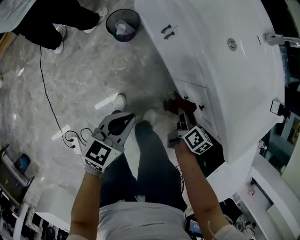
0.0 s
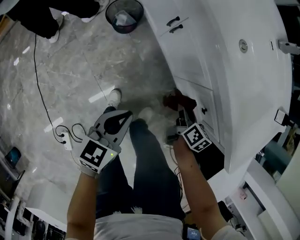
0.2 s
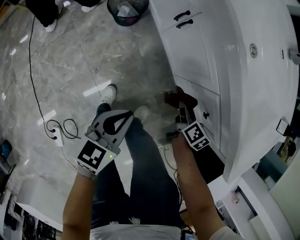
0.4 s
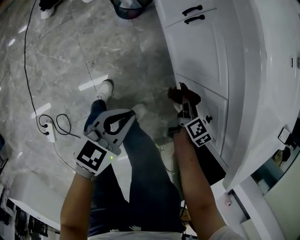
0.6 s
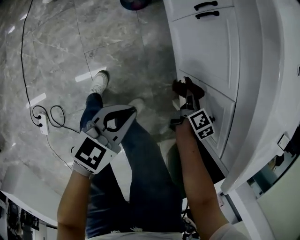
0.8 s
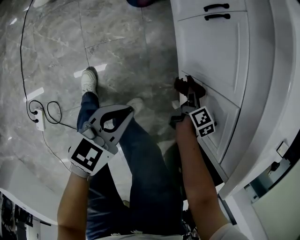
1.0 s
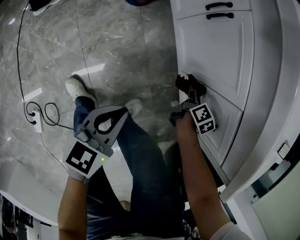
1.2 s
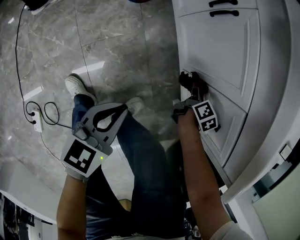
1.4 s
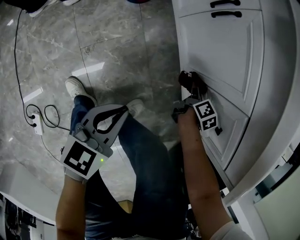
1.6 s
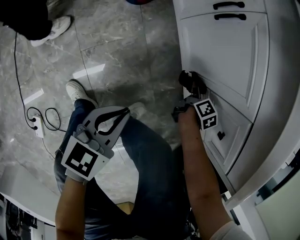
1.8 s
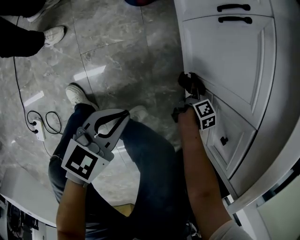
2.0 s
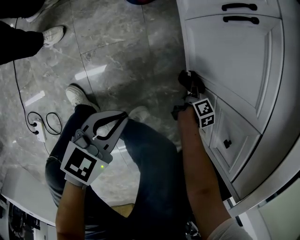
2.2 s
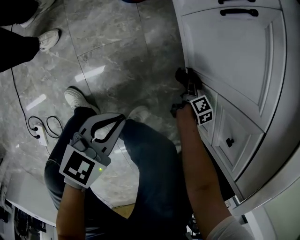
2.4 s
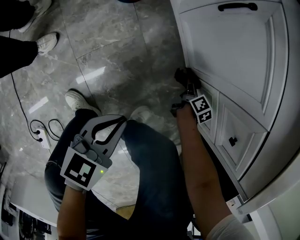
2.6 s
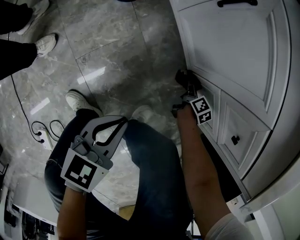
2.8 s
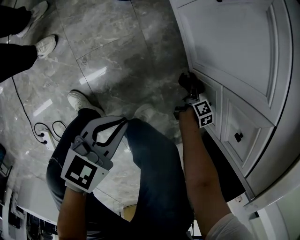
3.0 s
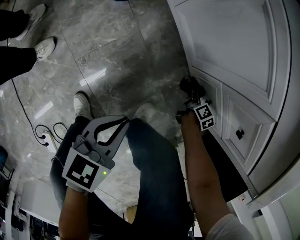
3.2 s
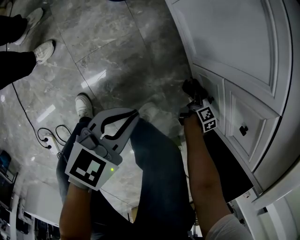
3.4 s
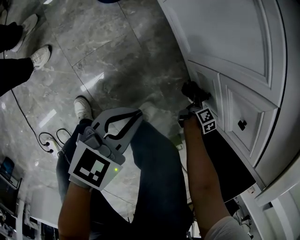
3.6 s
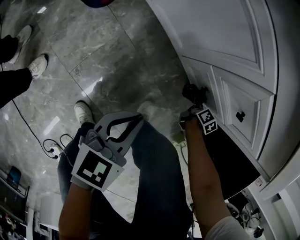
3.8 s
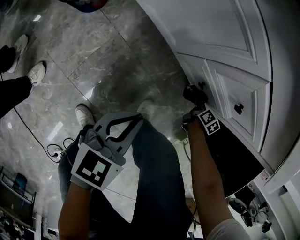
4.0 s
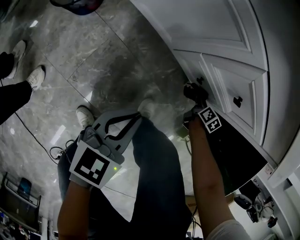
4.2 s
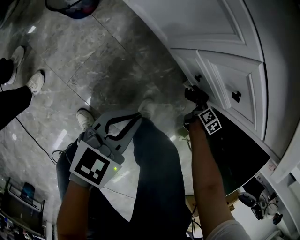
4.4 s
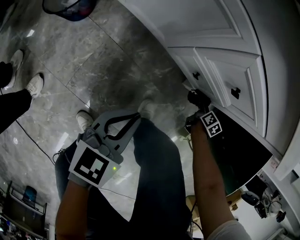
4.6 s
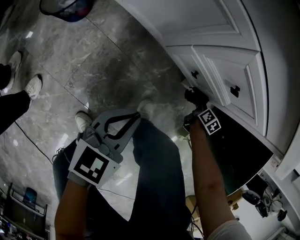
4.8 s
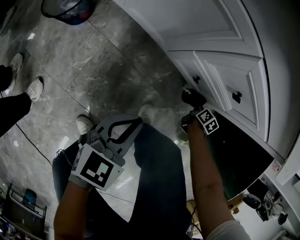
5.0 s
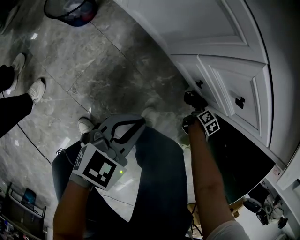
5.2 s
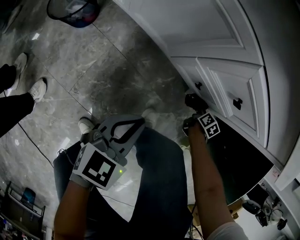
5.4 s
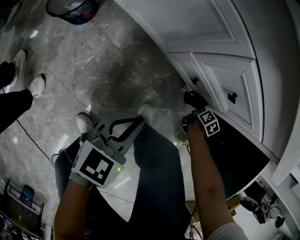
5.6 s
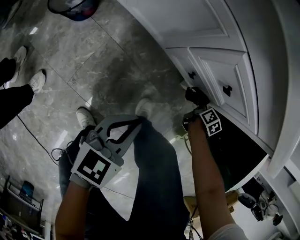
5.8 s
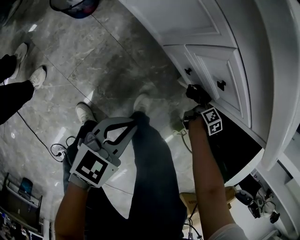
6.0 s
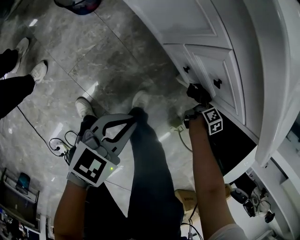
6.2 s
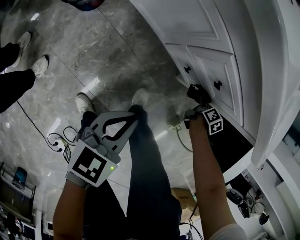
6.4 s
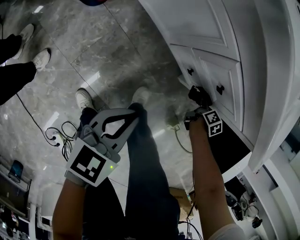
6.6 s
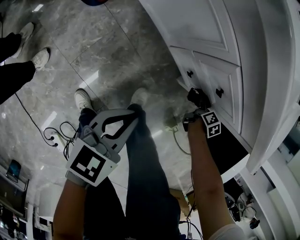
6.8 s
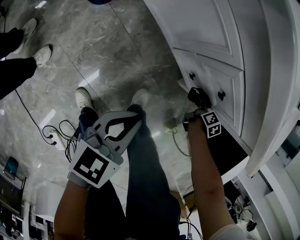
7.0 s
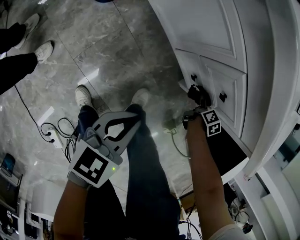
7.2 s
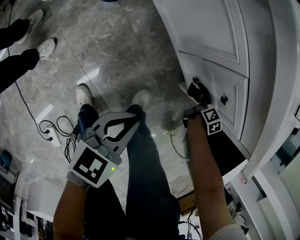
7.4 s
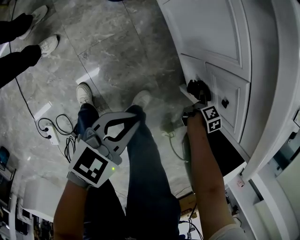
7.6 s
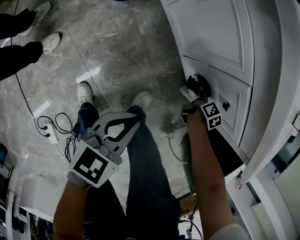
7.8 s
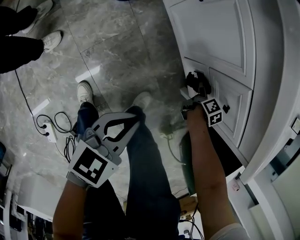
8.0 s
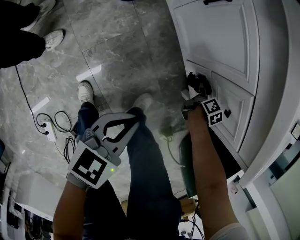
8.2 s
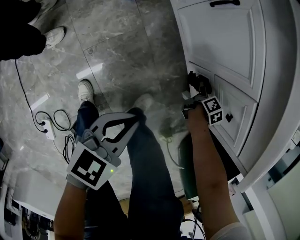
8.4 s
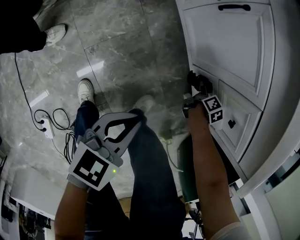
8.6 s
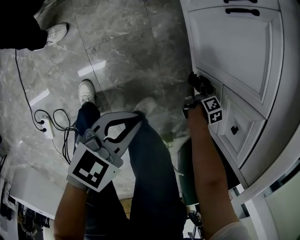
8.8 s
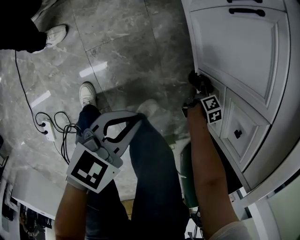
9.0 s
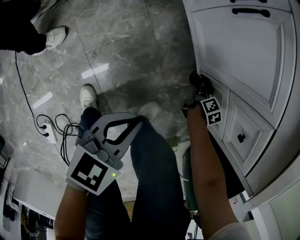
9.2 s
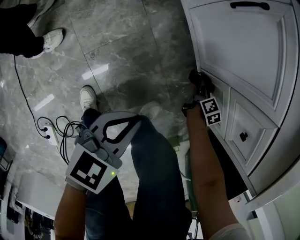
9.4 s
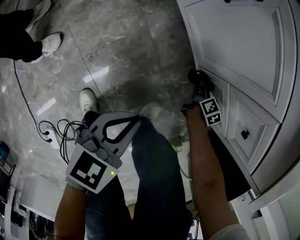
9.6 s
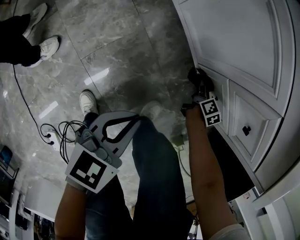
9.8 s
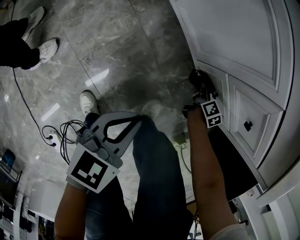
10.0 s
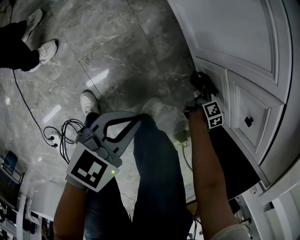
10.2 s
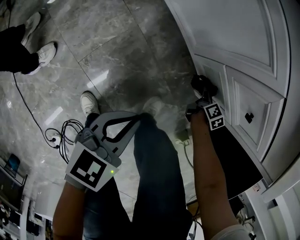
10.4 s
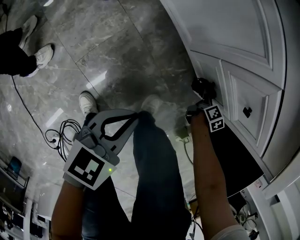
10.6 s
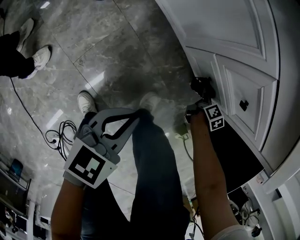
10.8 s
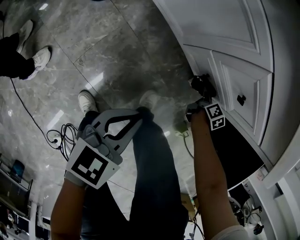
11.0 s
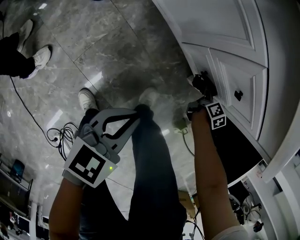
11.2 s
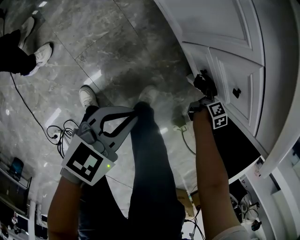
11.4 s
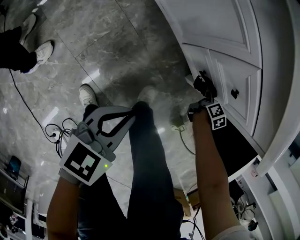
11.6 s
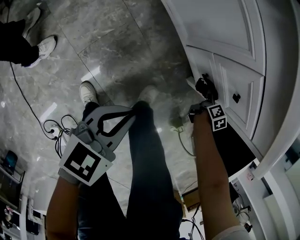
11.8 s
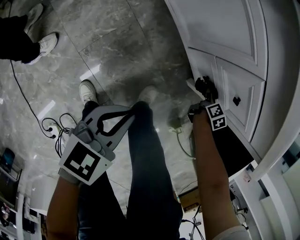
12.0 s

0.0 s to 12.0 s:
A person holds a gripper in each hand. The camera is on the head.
0.0 to 1.6 s: Both grippers travel together downward, some 25 cm.
1.6 to 3.0 s: The left gripper shifts about 5 cm downward. Meanwhile the right gripper travels downward and to the right by about 15 cm.
3.0 to 4.4 s: The right gripper goes approximately 20 cm to the right. The left gripper goes approximately 10 cm to the right and forward, and rotates roughly 20 degrees.
4.4 to 6.0 s: The right gripper goes about 10 cm upward; the left gripper moves about 5 cm.
6.0 to 7.6 s: The right gripper travels to the left by about 10 cm, while the left gripper moves to the left, about 5 cm.
7.6 to 9.0 s: The left gripper moves downward and to the left, about 10 cm, while the right gripper heads to the left and downward, covering roughly 15 cm.
9.0 to 10.4 s: The left gripper ends up some 5 cm from where it was, while the right gripper moves to the right, about 10 cm.
10.4 to 12.0 s: The left gripper is displaced upward by about 5 cm. The right gripper goes about 10 cm upward.

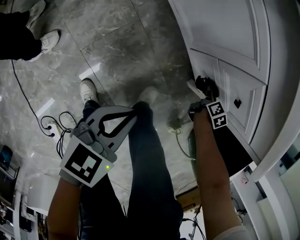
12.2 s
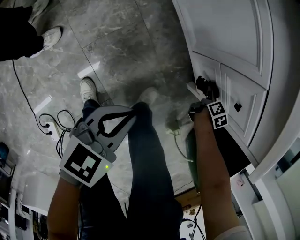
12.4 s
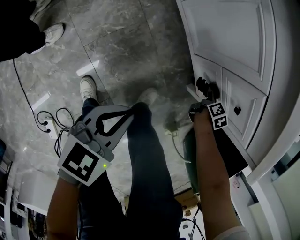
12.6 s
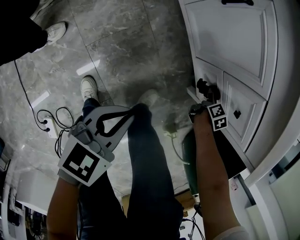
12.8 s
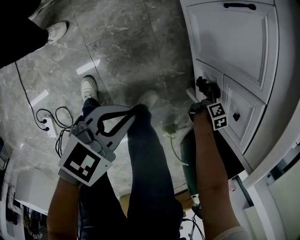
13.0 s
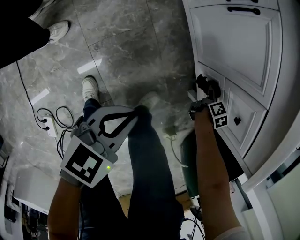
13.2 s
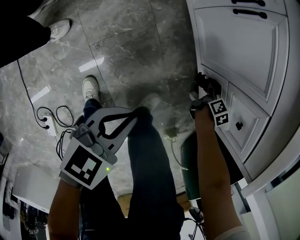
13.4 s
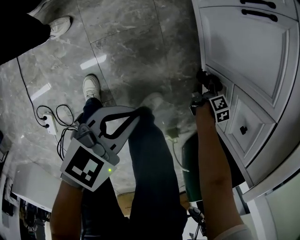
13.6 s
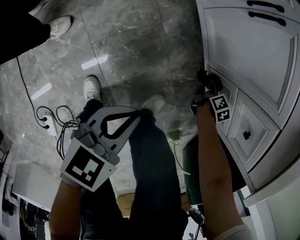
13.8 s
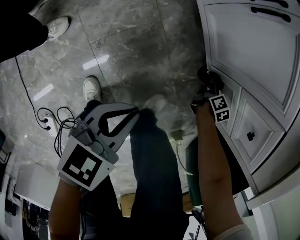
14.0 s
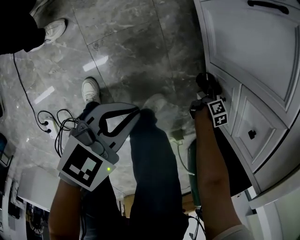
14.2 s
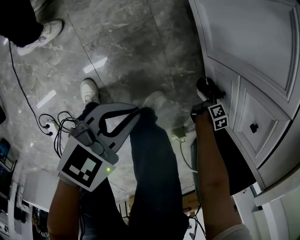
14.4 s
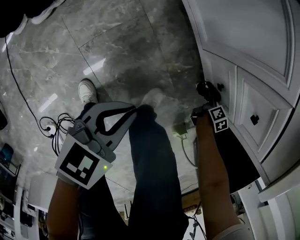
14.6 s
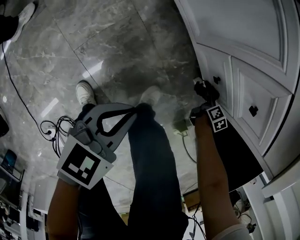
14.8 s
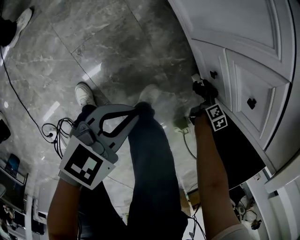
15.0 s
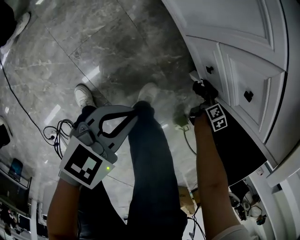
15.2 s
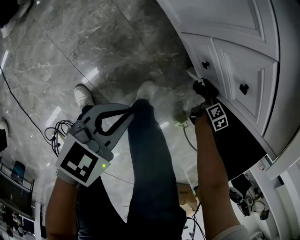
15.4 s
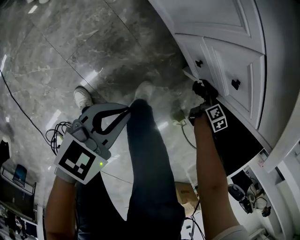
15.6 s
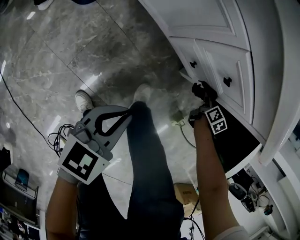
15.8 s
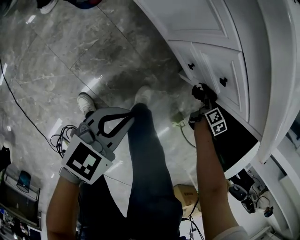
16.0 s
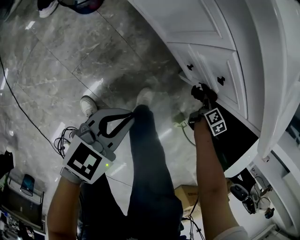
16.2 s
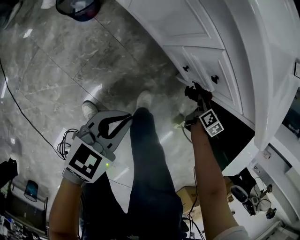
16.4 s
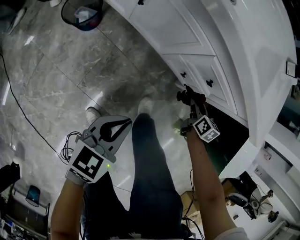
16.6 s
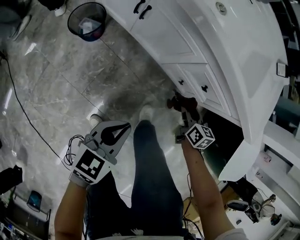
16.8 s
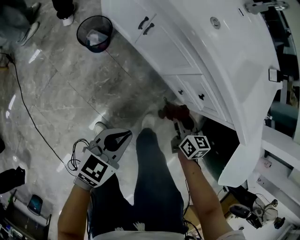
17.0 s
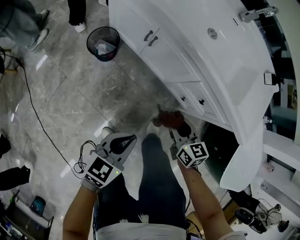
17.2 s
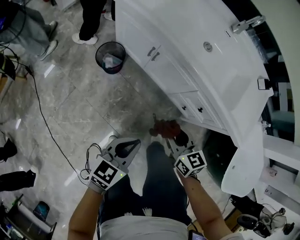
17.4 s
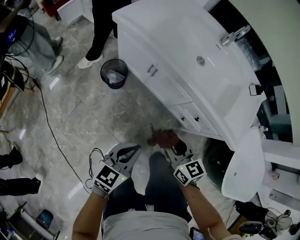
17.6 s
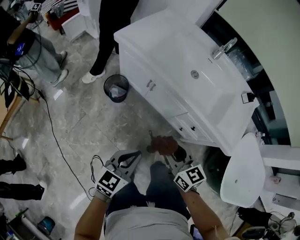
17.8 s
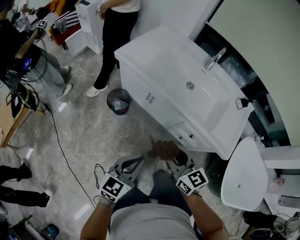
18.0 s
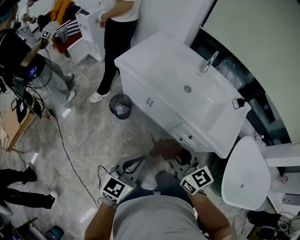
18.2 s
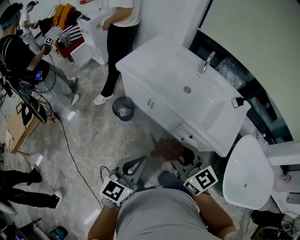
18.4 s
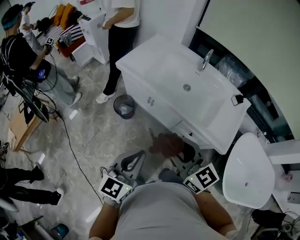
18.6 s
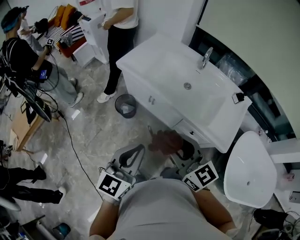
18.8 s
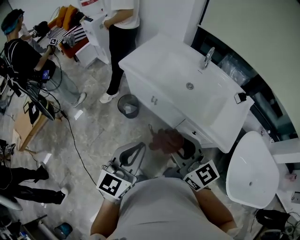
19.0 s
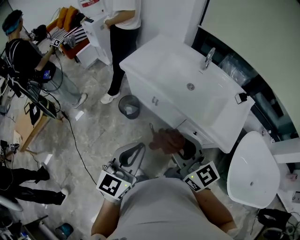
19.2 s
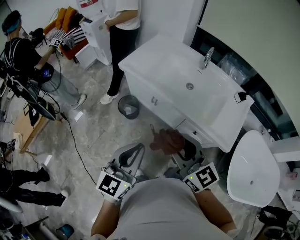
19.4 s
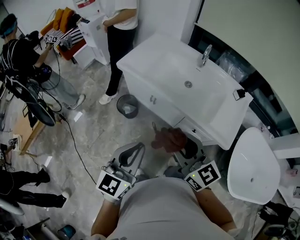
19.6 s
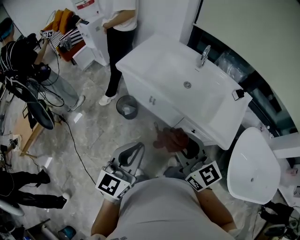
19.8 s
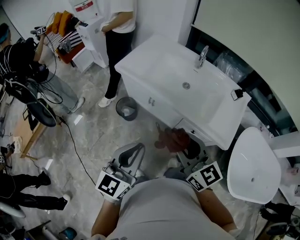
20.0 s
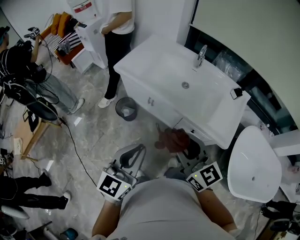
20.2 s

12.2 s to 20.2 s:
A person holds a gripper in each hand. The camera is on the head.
12.2 to 13.8 s: The right gripper heads to the left and downward, covering roughly 15 cm. The left gripper moves downward, roughly 5 cm.
13.8 to 15.4 s: The left gripper heads to the right, covering about 10 cm. Meanwhile the right gripper heads to the right, covering roughly 25 cm.
15.4 to 17.0 s: The right gripper heads upward, to the left and backward, covering approximately 40 cm, and changes its angle by about 40 degrees. Meanwhile the left gripper travels upward by about 15 cm.
17.0 to 18.6 s: The two grippers go roughly 40 cm upward. The right gripper tilts its fingers some 30 degrees upward. Meanwhile the left gripper swivels some 30 degrees.
18.6 to 20.2 s: There are only small adjustments of the grippers.

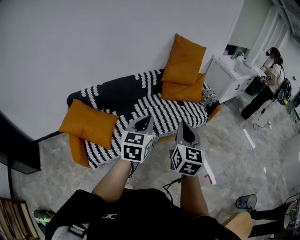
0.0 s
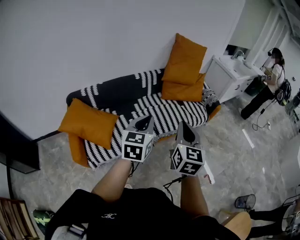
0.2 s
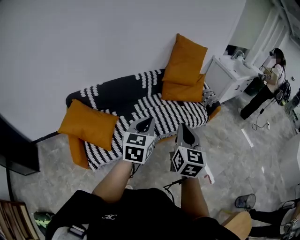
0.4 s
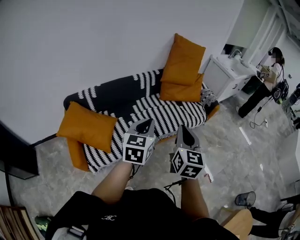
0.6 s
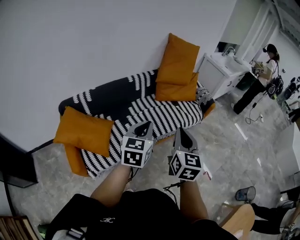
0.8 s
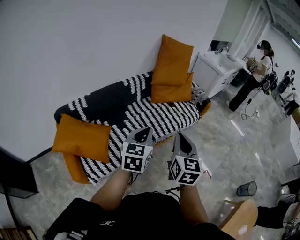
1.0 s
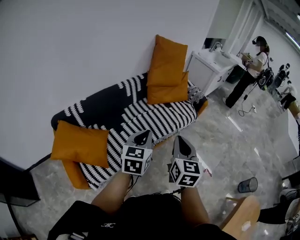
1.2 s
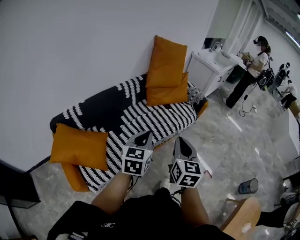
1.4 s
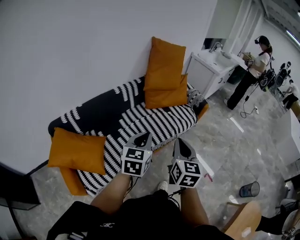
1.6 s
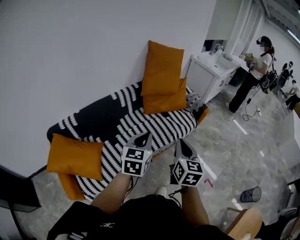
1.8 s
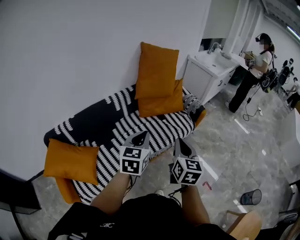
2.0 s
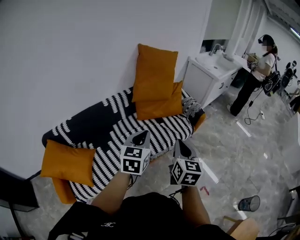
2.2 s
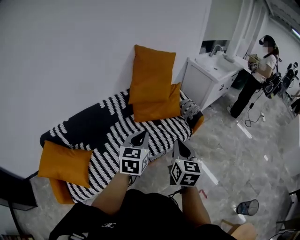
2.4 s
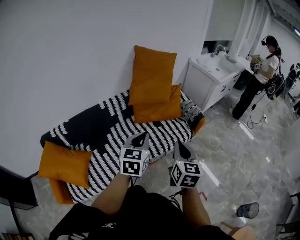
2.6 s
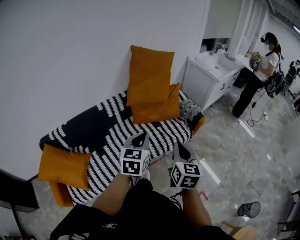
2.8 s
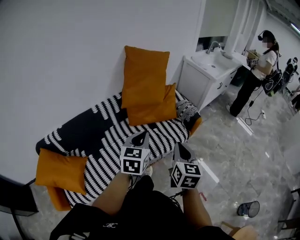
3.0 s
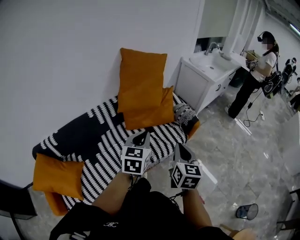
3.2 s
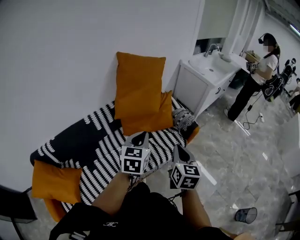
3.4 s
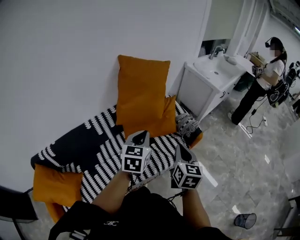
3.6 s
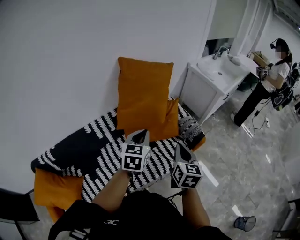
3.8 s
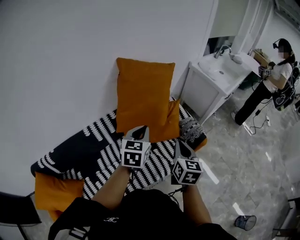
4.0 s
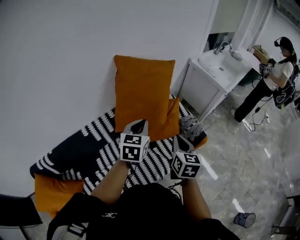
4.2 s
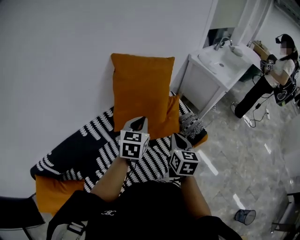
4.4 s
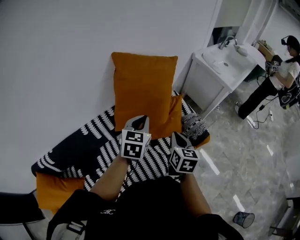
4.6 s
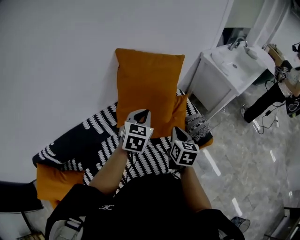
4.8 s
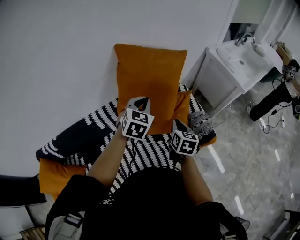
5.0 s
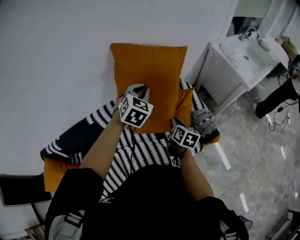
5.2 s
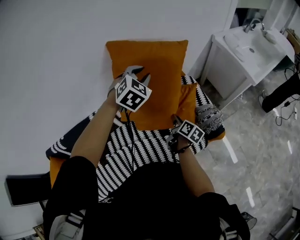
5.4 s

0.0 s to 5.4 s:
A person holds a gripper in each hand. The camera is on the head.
0.0 to 1.4 s: The left gripper moves forward, about 5 cm; the right gripper moves some 10 cm.
1.4 to 2.8 s: The grippers both shift forward and to the right by approximately 35 cm.
2.8 to 4.0 s: The two grippers go approximately 35 cm forward.
4.0 to 5.4 s: The left gripper moves forward, some 30 cm, and rotates roughly 40 degrees. Meanwhile the right gripper heads forward and downward, covering roughly 30 cm, rotates around the line of its fingers by roughly 40 degrees, clockwise from behind, and opens its fingers.
